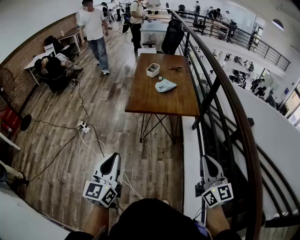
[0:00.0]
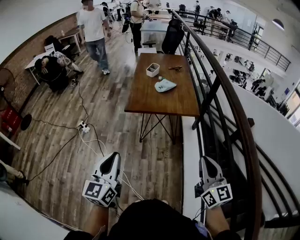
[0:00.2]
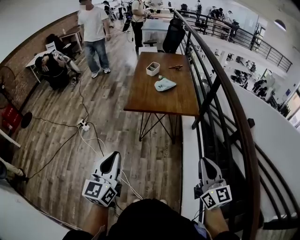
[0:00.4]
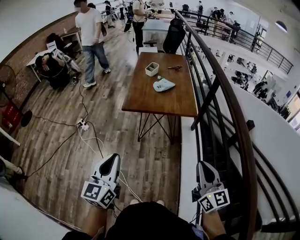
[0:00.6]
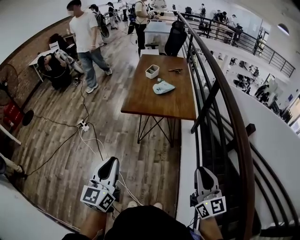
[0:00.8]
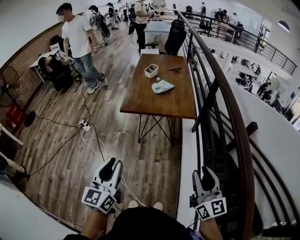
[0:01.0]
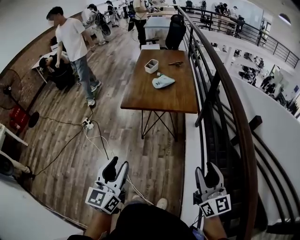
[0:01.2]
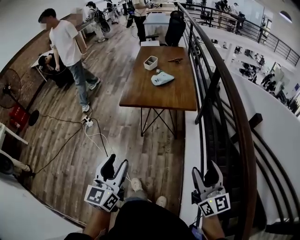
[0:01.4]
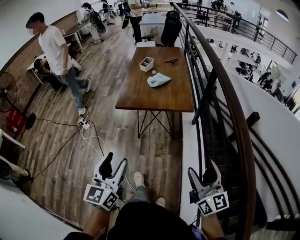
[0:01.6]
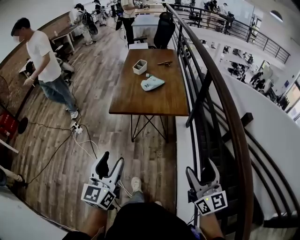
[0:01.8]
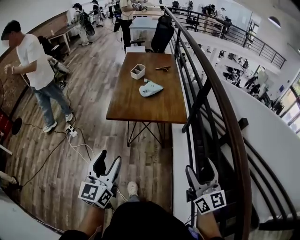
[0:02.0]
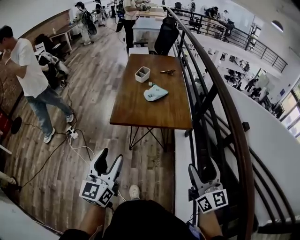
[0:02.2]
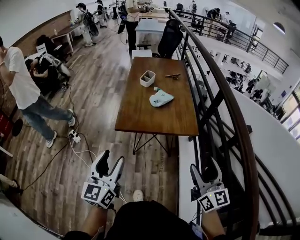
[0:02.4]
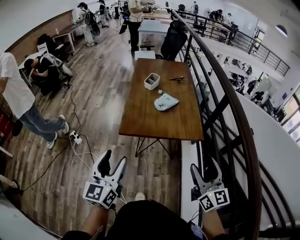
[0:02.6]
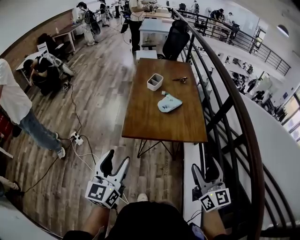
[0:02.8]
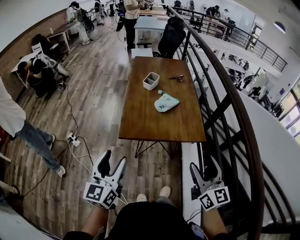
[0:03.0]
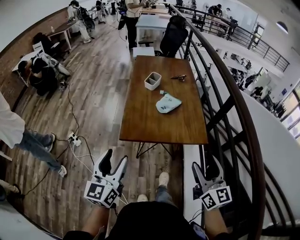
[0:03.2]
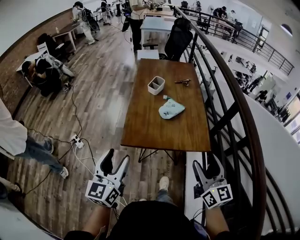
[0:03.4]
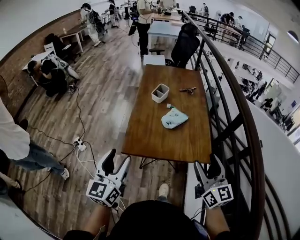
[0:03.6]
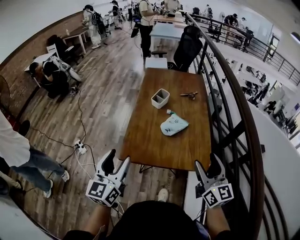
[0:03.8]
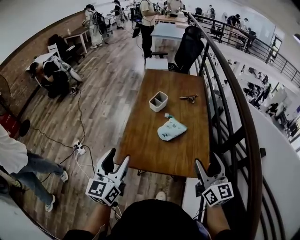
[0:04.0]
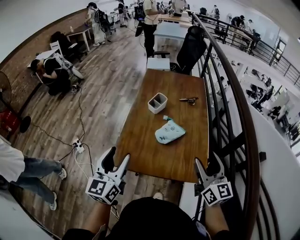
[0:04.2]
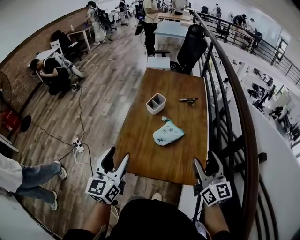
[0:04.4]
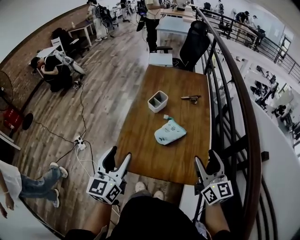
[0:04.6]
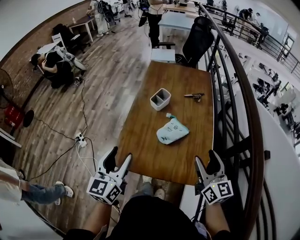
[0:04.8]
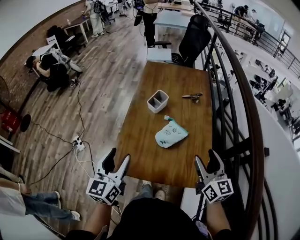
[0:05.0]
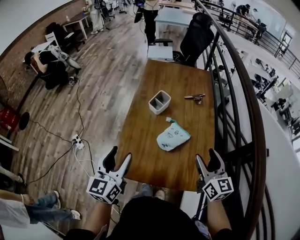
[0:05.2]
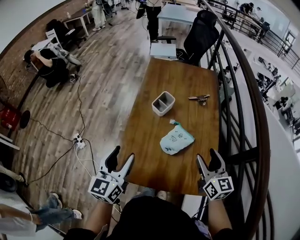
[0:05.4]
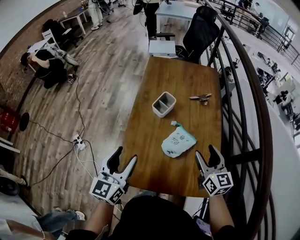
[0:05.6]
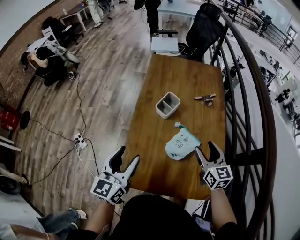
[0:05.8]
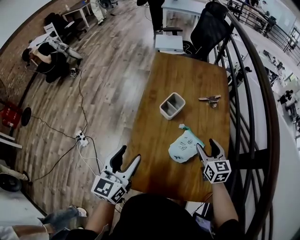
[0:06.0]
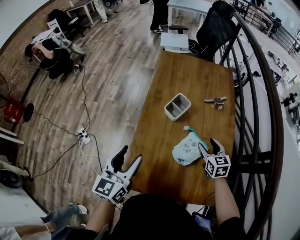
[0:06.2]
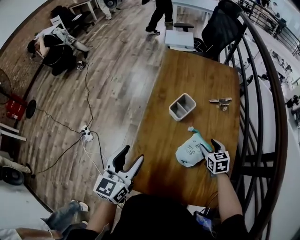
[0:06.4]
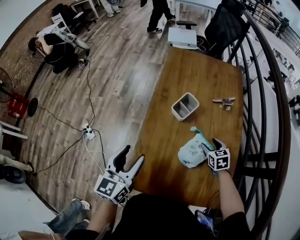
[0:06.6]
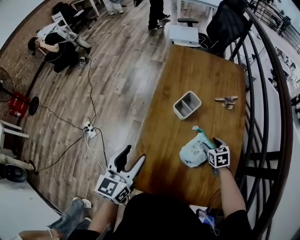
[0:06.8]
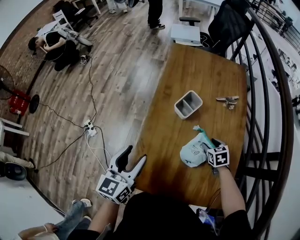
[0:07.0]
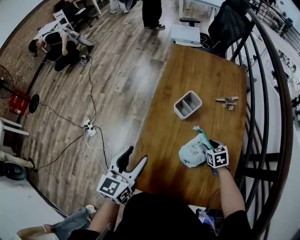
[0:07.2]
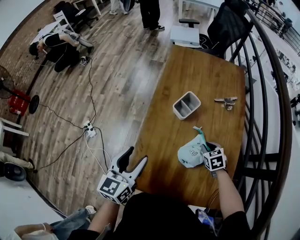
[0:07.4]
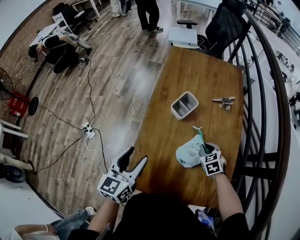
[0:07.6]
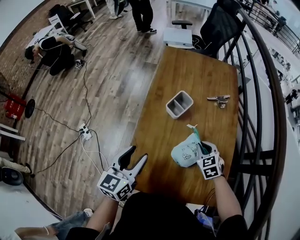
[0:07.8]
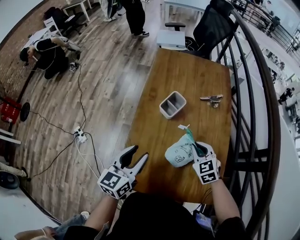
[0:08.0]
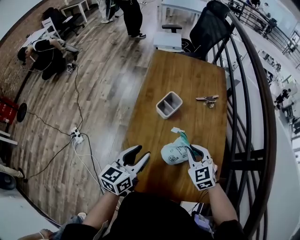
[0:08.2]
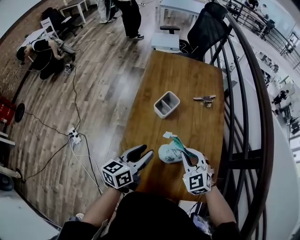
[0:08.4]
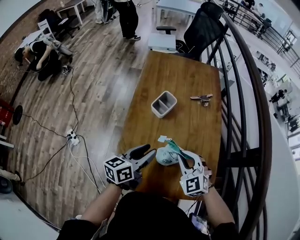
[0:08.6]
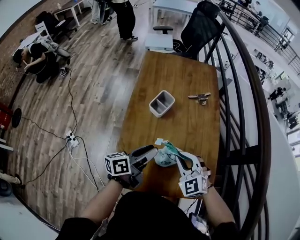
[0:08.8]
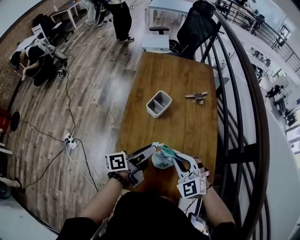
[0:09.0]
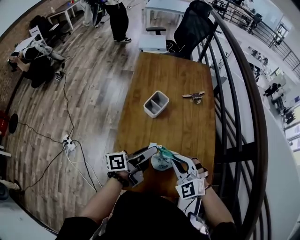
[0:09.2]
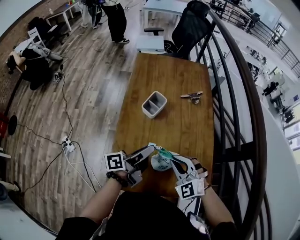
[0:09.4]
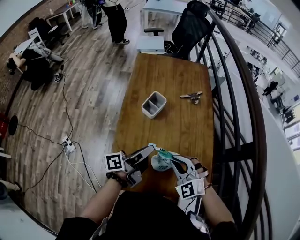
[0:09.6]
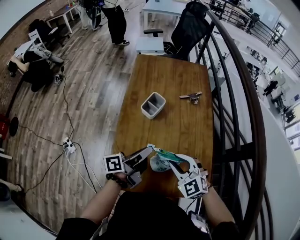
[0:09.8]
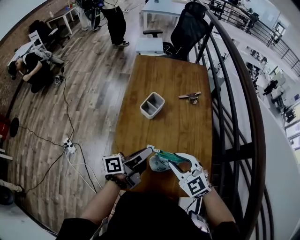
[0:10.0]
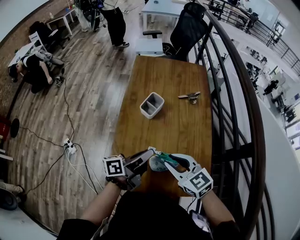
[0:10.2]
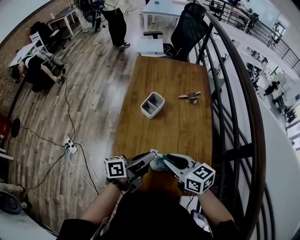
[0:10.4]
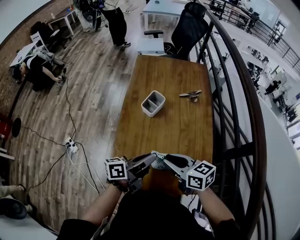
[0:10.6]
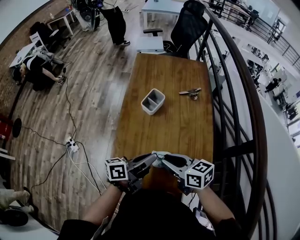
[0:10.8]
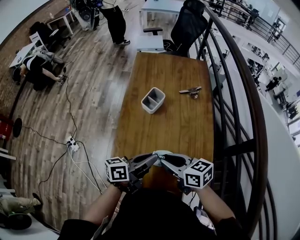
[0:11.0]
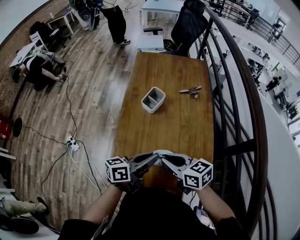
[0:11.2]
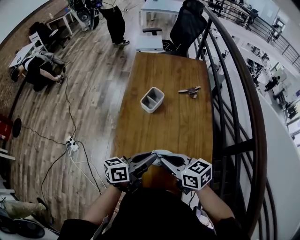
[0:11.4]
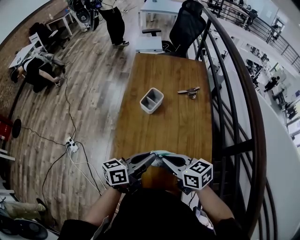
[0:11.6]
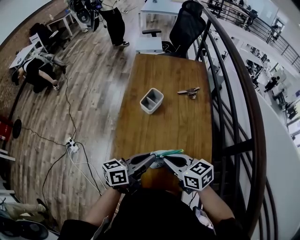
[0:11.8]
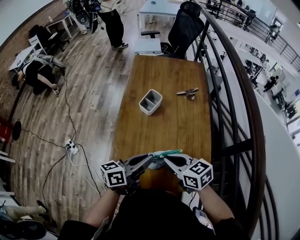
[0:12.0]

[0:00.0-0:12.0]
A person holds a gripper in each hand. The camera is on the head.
0:00.0 to 0:01.6: Both grippers travel together to the right, about 10 cm. The right gripper opens, while the left gripper opens its fingers.
0:01.6 to 0:03.0: The grippers both shift forward and to the left by some 25 cm.
0:03.0 to 0:04.4: The right gripper goes about 30 cm forward; the left gripper is displaced forward and to the right by some 25 cm.
0:04.4 to 0:06.0: The left gripper travels forward and downward by roughly 20 cm. The right gripper heads forward and downward, covering approximately 30 cm, and swivels about 30 degrees.
0:06.0 to 0:07.6: The right gripper shifts about 10 cm downward, swivels approximately 40 degrees, and closes up.
0:07.6 to 0:09.0: The right gripper moves upward, backward and to the left, approximately 20 cm, and swivels about 40 degrees; the left gripper travels to the right by approximately 15 cm, and rolls counterclockwise, seen from behind, by roughly 60 degrees.
0:09.0 to 0:10.4: The left gripper ends up some 5 cm from where it was, and closes; the right gripper twists roughly 50 degrees clockwise, seen from behind.
0:10.4 to 0:12.0: There are only small adjustments of the grippers.

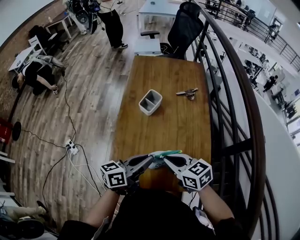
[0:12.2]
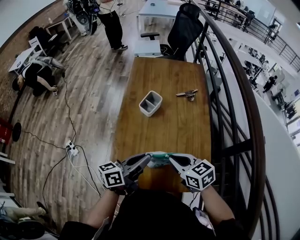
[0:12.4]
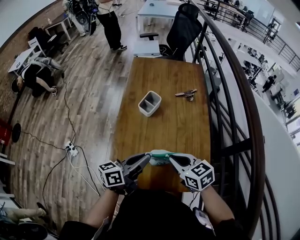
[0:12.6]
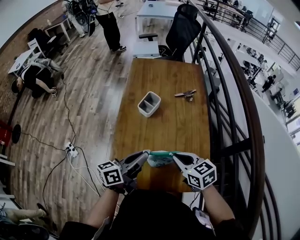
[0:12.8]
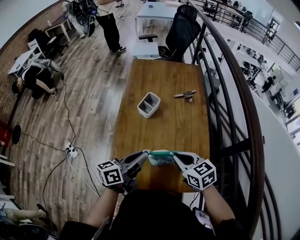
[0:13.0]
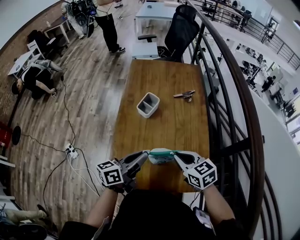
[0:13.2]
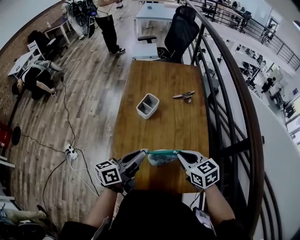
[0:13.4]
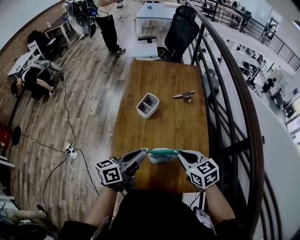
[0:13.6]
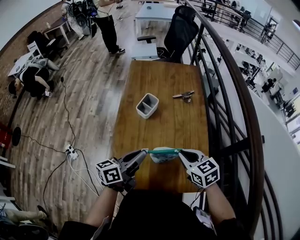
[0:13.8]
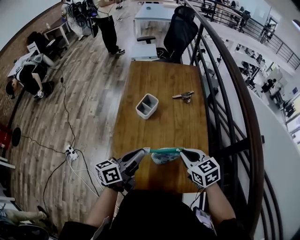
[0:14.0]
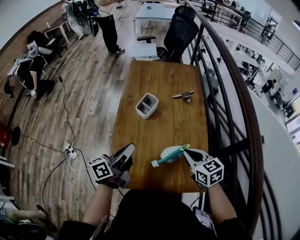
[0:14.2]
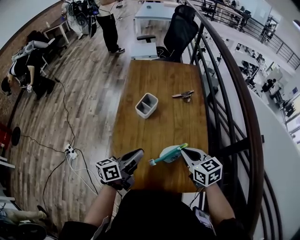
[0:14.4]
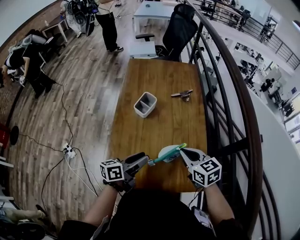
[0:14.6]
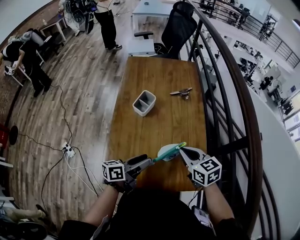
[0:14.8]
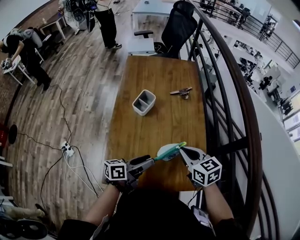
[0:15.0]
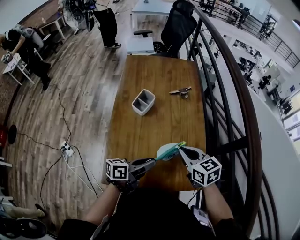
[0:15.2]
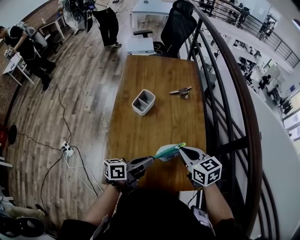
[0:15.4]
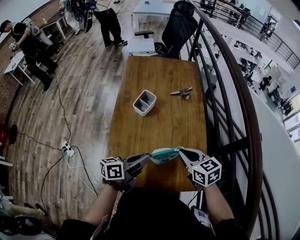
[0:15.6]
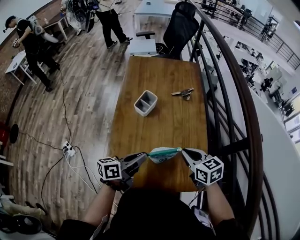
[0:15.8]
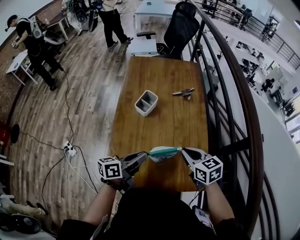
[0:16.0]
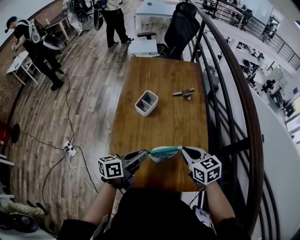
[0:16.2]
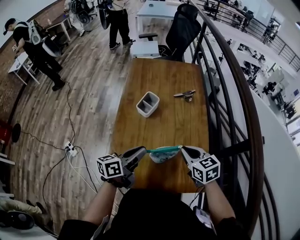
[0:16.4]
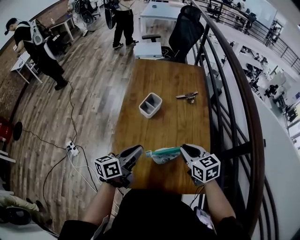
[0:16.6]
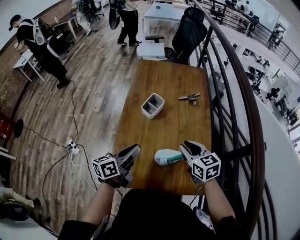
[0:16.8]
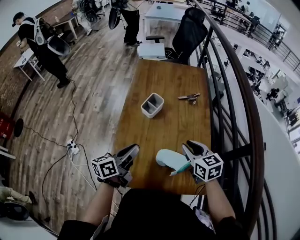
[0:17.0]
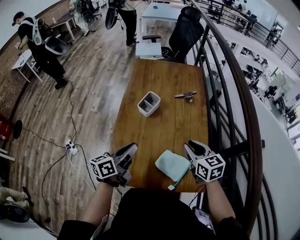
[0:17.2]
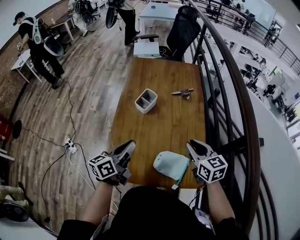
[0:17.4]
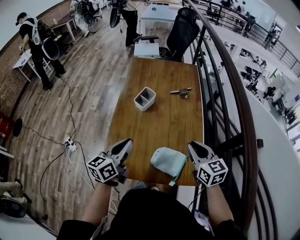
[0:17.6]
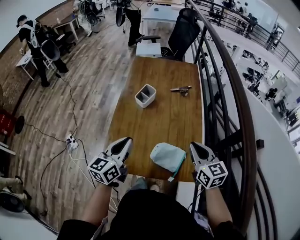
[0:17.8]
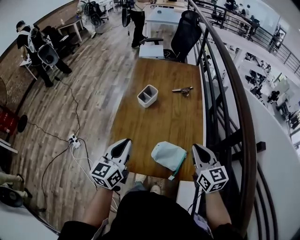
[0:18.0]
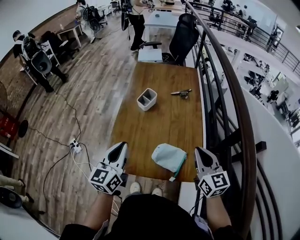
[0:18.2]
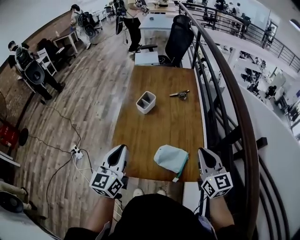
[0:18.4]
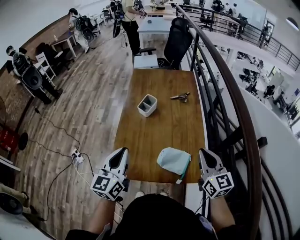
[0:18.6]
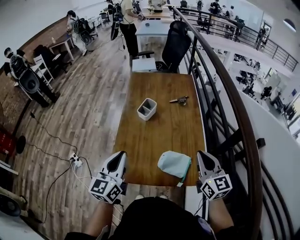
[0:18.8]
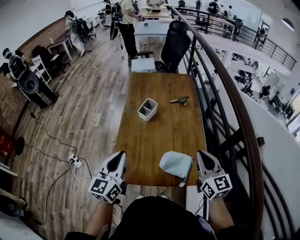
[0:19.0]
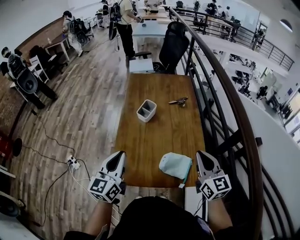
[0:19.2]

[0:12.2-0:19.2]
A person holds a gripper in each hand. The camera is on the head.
0:12.2 to 0:13.6: The right gripper heads to the right, covering some 5 cm.
0:13.6 to 0:15.0: The left gripper is displaced downward by approximately 5 cm, and opens its fingers.
0:15.0 to 0:16.4: The left gripper travels to the left by about 5 cm, and closes.
0:16.4 to 0:17.8: The left gripper heads backward and upward, covering approximately 10 cm, and turns by approximately 30 degrees. The right gripper goes approximately 10 cm to the right, upward and backward.
0:17.8 to 0:19.2: The right gripper heads upward, covering some 5 cm. Meanwhile the left gripper travels to the left by some 5 cm.

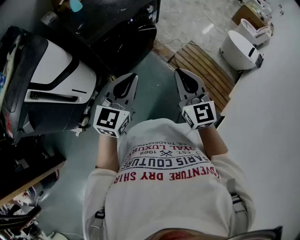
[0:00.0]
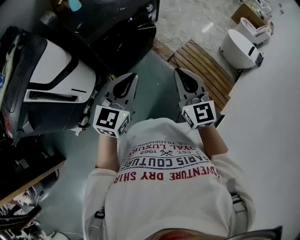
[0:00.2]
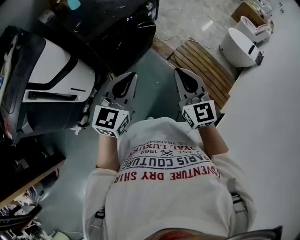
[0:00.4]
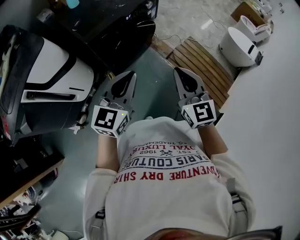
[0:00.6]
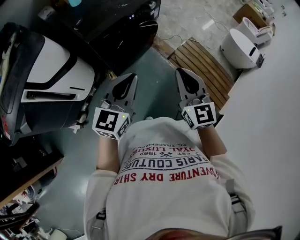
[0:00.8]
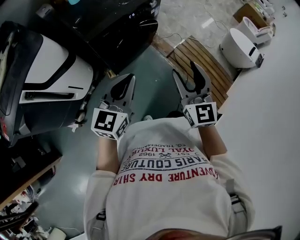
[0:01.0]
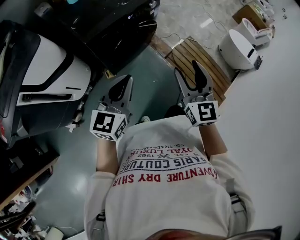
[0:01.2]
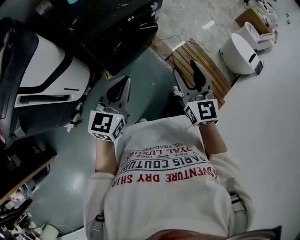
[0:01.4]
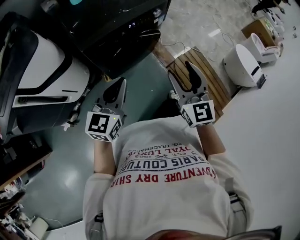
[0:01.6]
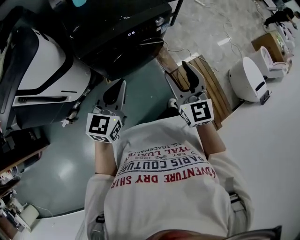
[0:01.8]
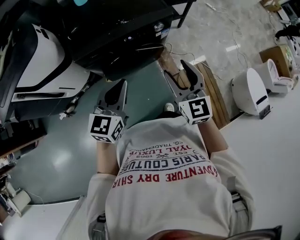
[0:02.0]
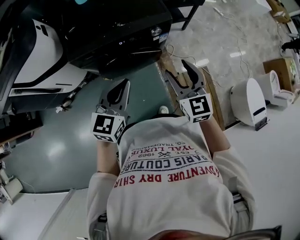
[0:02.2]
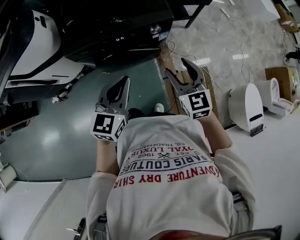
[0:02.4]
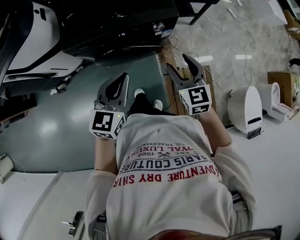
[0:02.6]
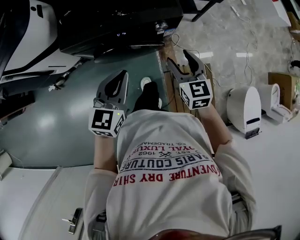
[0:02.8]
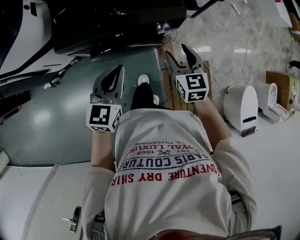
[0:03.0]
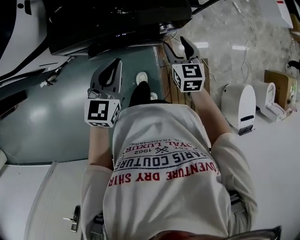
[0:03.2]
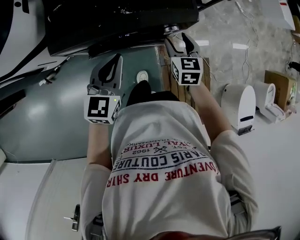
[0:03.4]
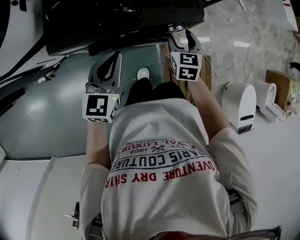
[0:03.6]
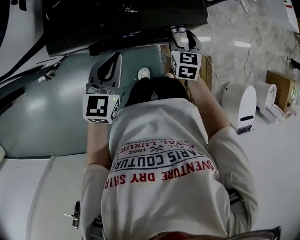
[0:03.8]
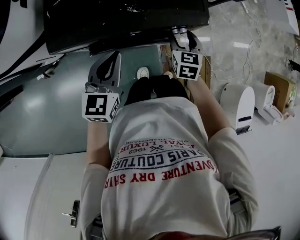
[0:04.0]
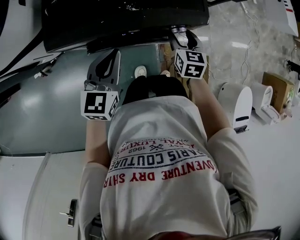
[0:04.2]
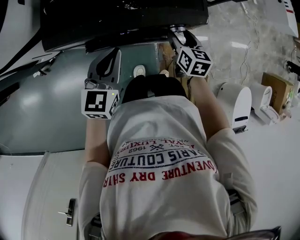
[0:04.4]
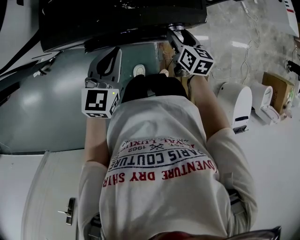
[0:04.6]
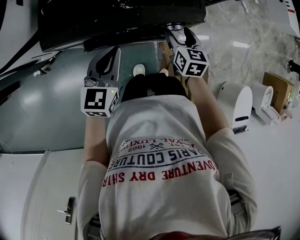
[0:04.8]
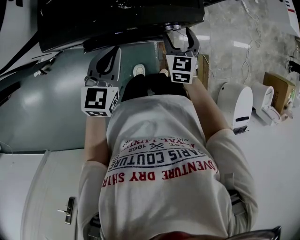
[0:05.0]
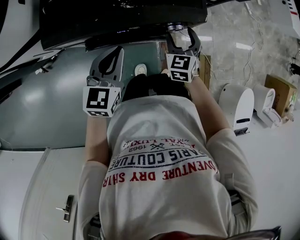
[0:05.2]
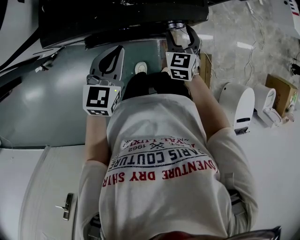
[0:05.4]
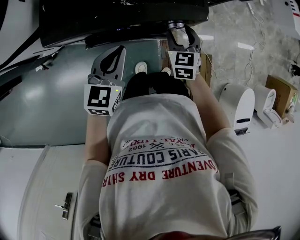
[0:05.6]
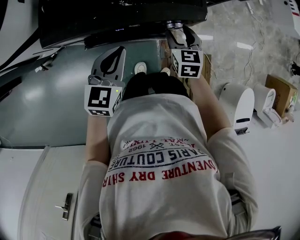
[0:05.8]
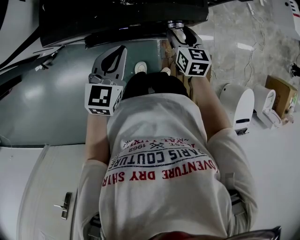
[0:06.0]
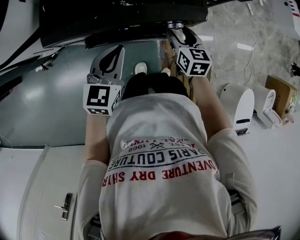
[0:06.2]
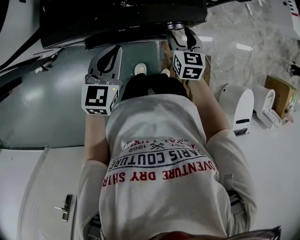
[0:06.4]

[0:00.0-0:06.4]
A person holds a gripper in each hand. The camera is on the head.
0:00.0 to 0:01.6: The two grippers go approximately 15 cm forward. The right gripper opens up.
0:01.6 to 0:03.2: The left gripper moves some 30 cm, and rotates about 30 degrees, while the right gripper ends up approximately 40 cm from where it was, and changes its angle by roughly 30 degrees.
0:03.2 to 0:04.8: Both grippers travel together downward and forward, about 10 cm.
